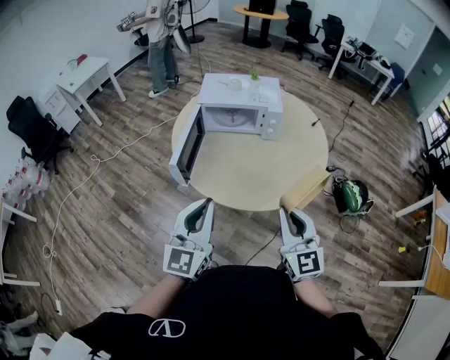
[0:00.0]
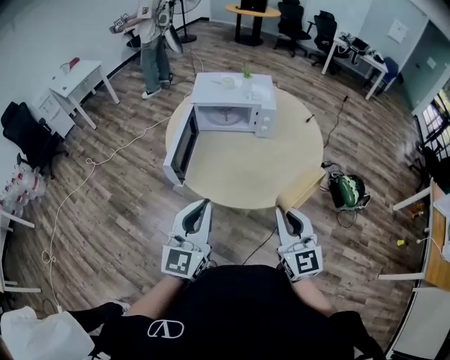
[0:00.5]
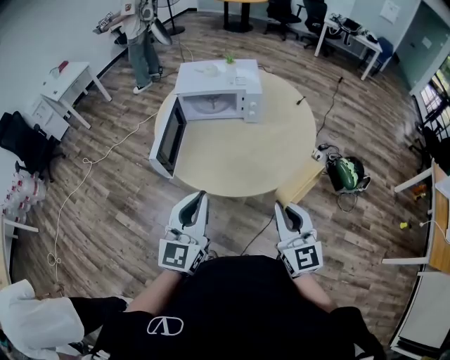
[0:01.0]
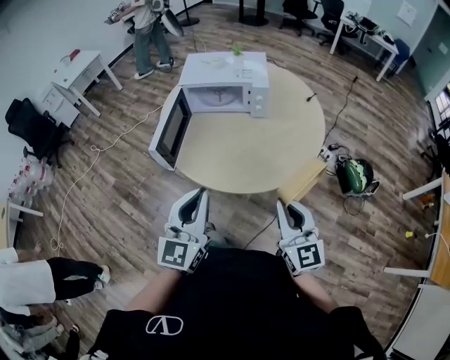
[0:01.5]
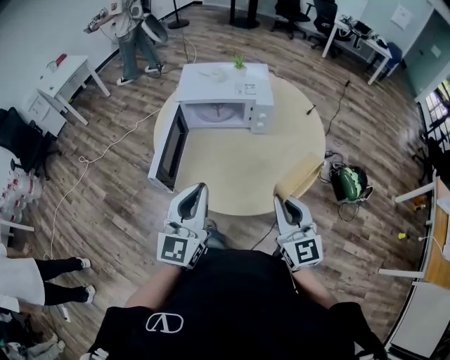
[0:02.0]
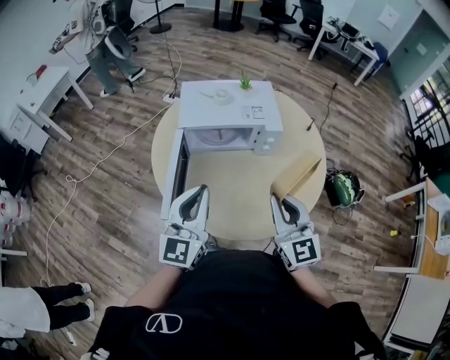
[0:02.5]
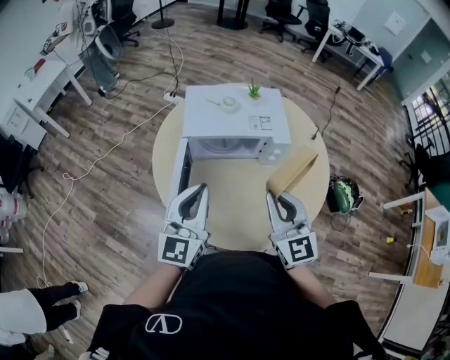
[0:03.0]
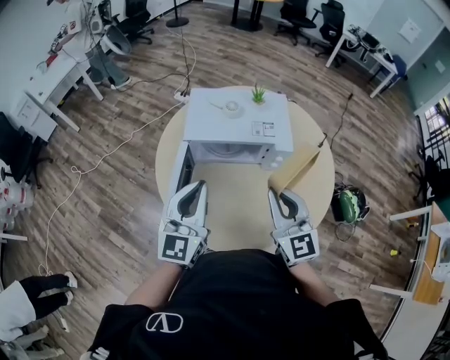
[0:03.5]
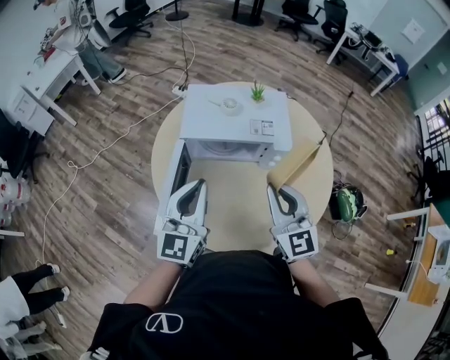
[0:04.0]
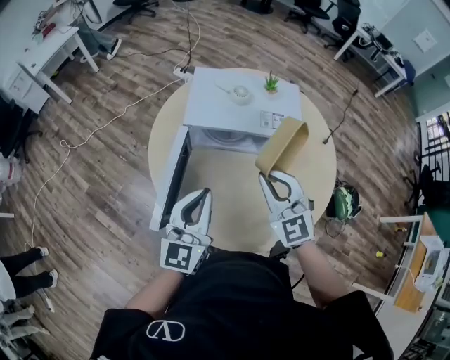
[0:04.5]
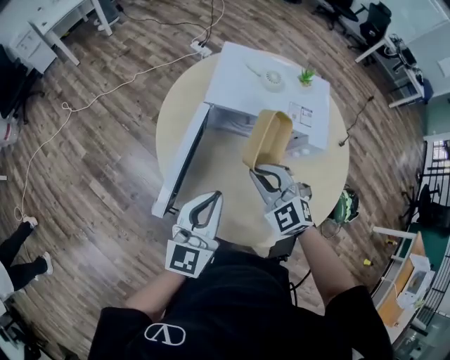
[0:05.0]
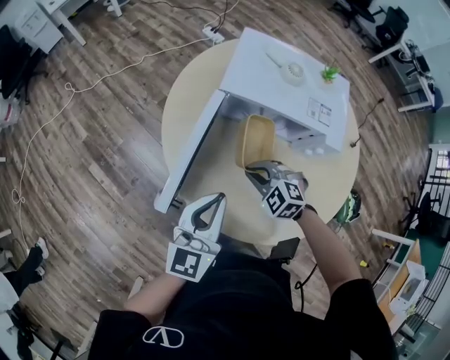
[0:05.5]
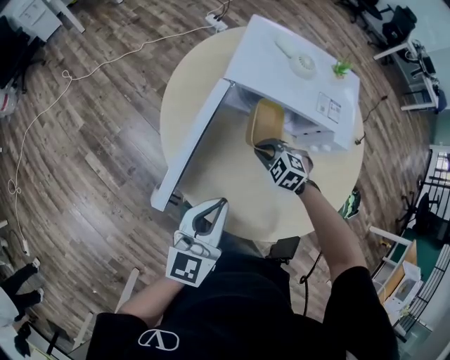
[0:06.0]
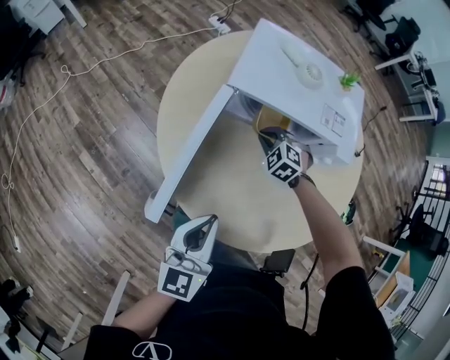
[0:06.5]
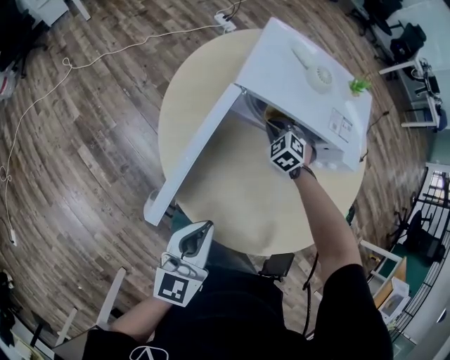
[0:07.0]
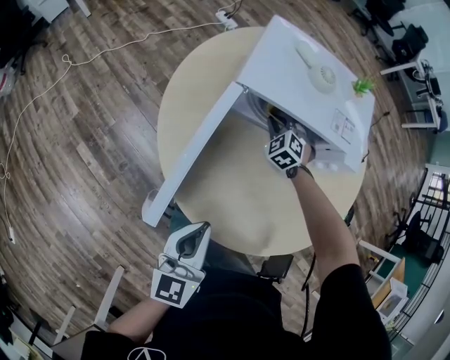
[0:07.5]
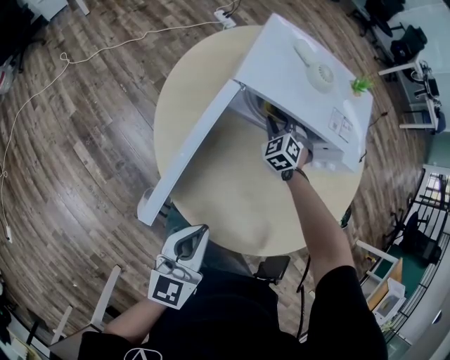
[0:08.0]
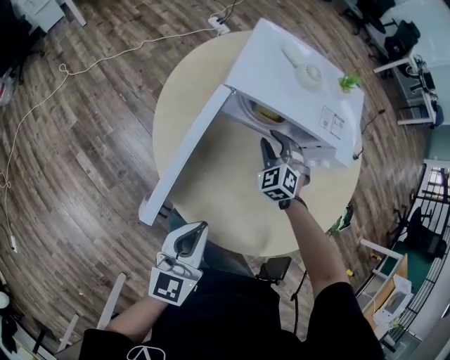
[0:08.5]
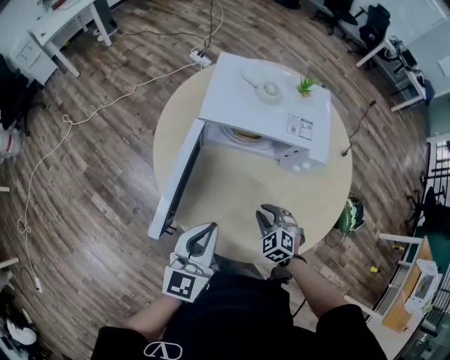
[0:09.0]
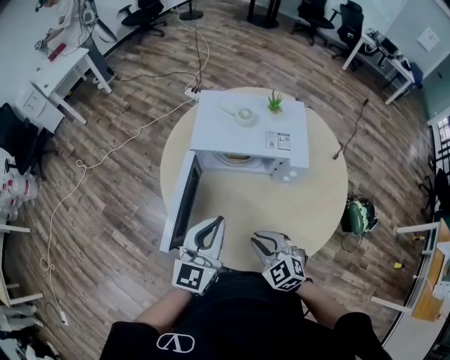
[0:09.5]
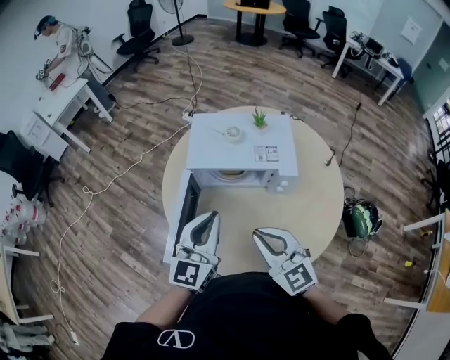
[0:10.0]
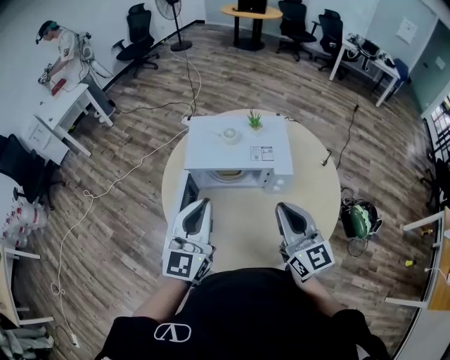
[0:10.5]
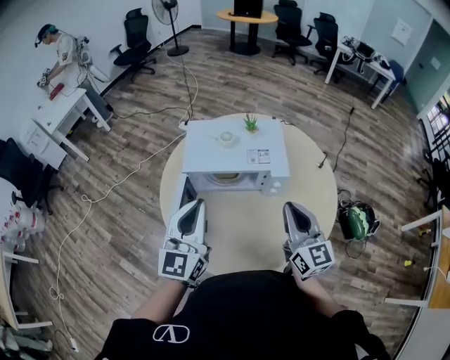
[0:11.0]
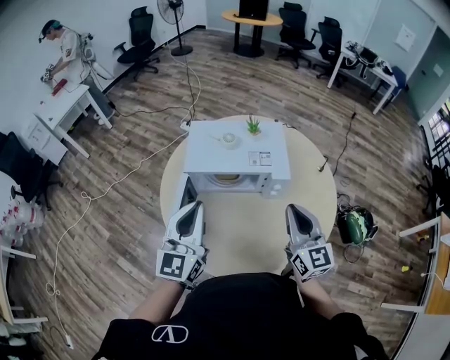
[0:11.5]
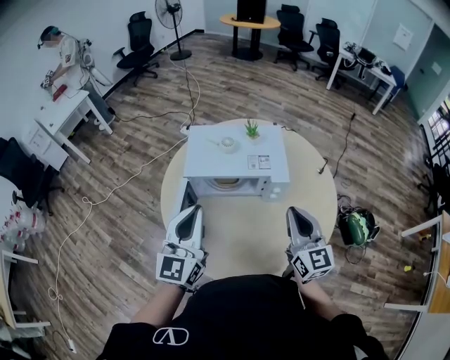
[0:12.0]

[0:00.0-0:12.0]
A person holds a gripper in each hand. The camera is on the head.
0.0 to 2.0 s: The grippers both shift forward by some 10 cm.
2.0 to 4.0 s: The two grippers go approximately 25 cm forward.
4.0 to 6.0 s: The right gripper goes roughly 35 cm downward, and tips its fingers downward by some 60 degrees. The left gripper goes approximately 15 cm downward, and changes its angle by about 20 degrees.
6.0 to 8.0 s: The right gripper shifts roughly 15 cm forward, turns by some 30 degrees, and opens up. The left gripper travels downward by about 5 cm.
8.0 to 10.0 s: The left gripper shifts some 25 cm upward and forward, and turns by some 30 degrees. The right gripper goes some 50 cm upward and backward, angles its fingers upward, by roughly 30 degrees, and closes up.
10.0 to 12.0 s: The right gripper moves to the right, about 15 cm, and changes its angle by roughly 30 degrees; the left gripper moves some 5 cm.

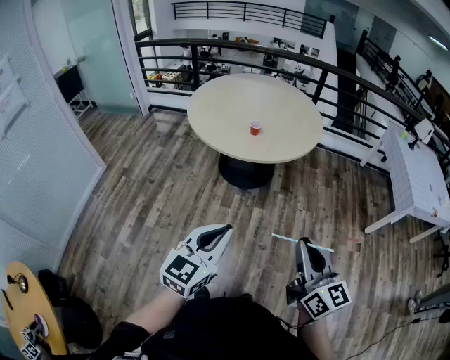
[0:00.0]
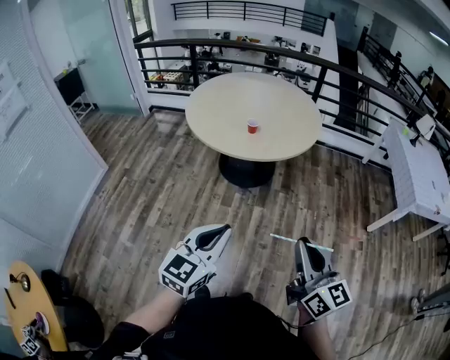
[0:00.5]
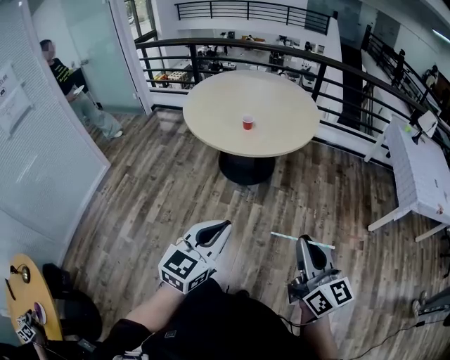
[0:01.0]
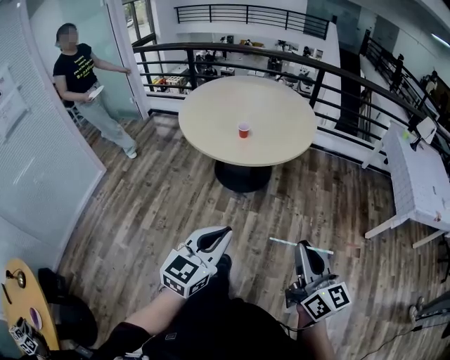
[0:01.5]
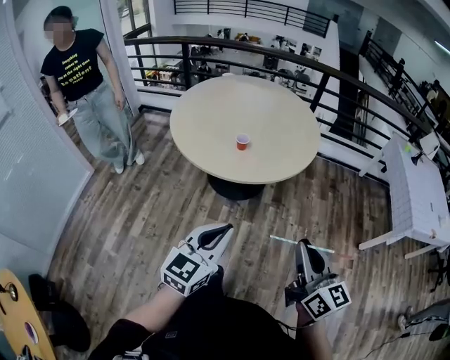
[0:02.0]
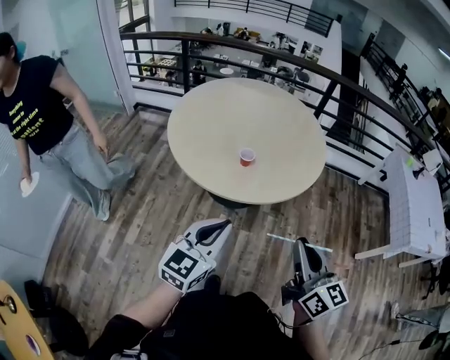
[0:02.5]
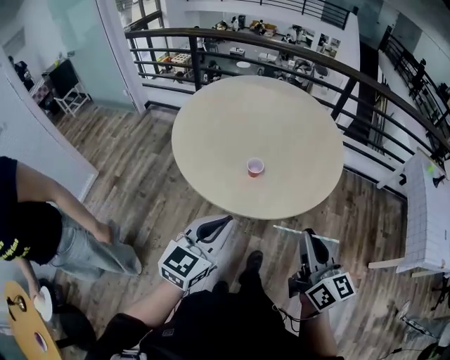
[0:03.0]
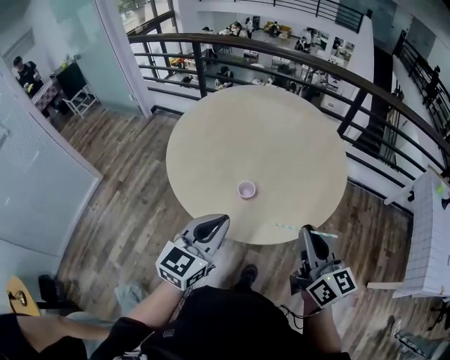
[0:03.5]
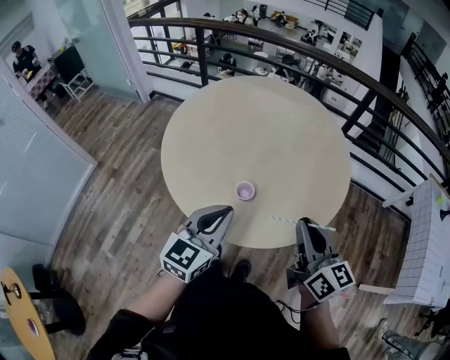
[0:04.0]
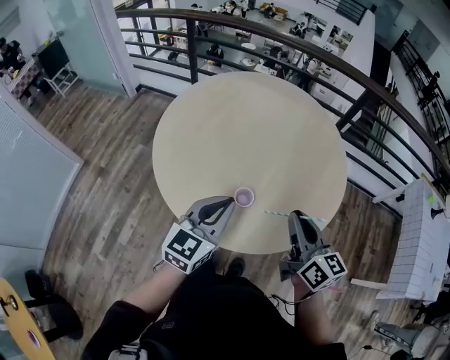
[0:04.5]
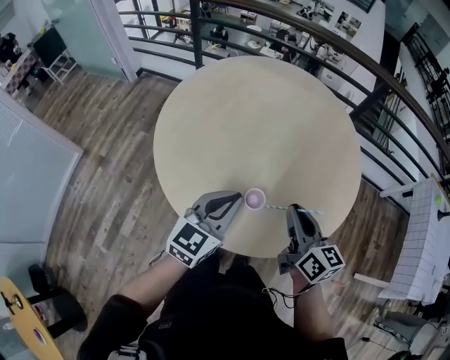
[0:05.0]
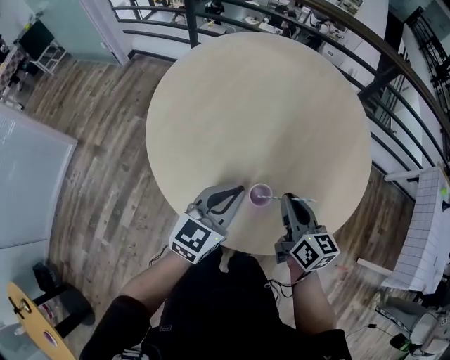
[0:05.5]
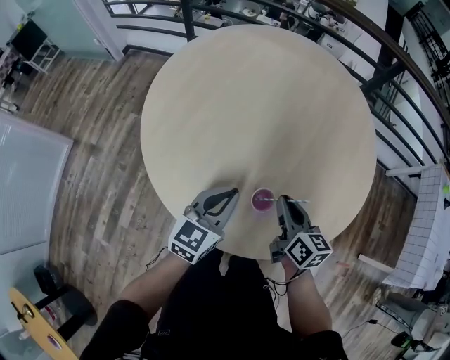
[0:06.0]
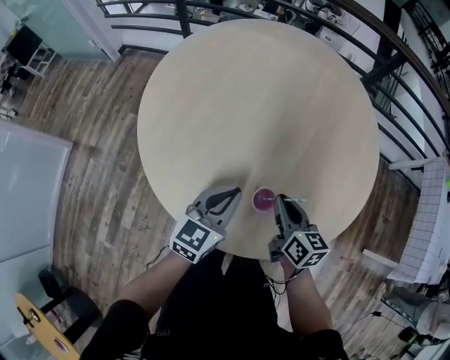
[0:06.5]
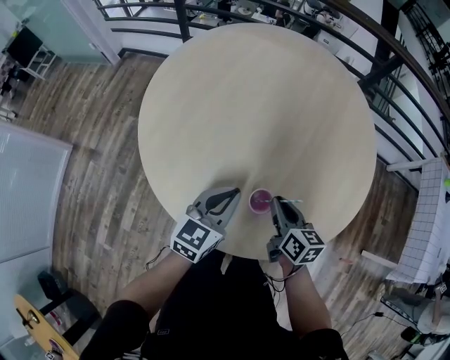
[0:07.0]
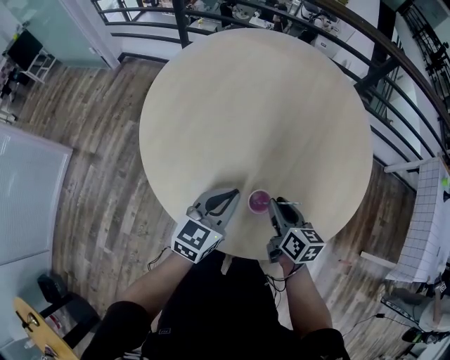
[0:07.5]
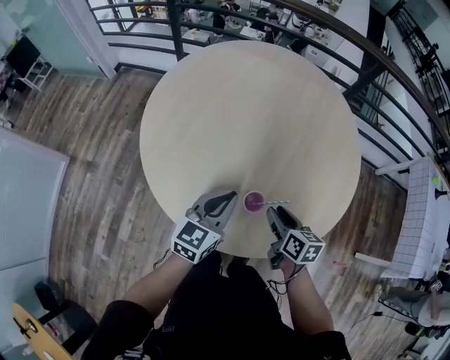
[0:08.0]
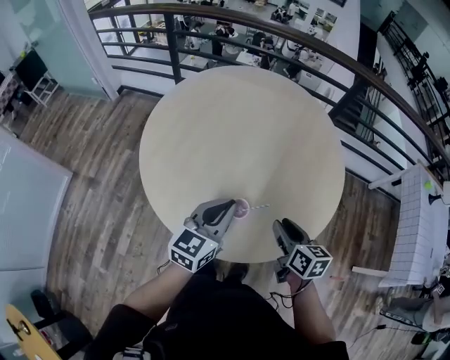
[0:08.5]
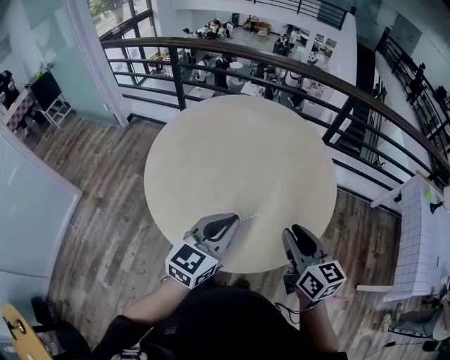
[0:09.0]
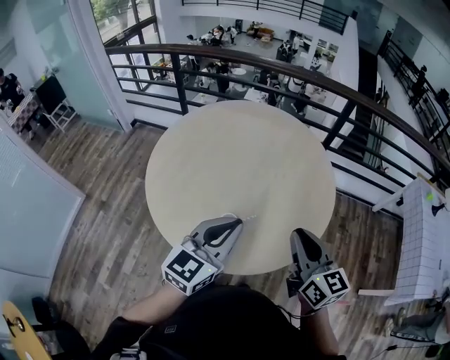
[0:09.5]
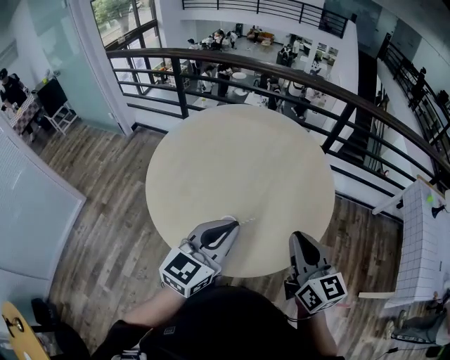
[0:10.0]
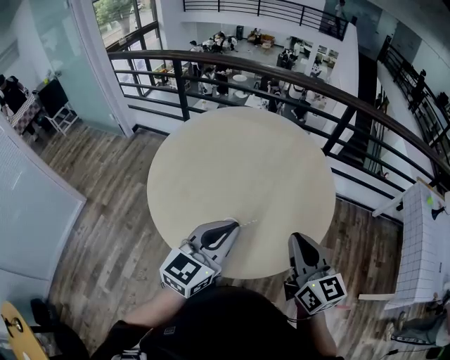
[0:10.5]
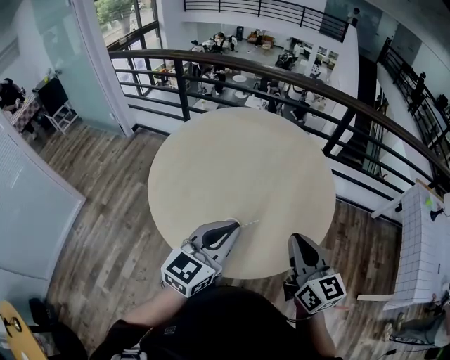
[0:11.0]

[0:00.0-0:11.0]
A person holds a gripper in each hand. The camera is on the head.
0.0 to 2.0 s: Both grippers travel together forward, approximately 20 cm.
2.0 to 3.5 s: Both grippers move forward, about 35 cm.
3.5 to 5.5 s: The right gripper shifts about 30 cm forward, downward and to the left; the left gripper moves forward and downward, roughly 25 cm.
5.5 to 7.5 s: The right gripper moves downward, some 10 cm, while the left gripper moves downward, some 5 cm.
7.5 to 9.0 s: The grippers both shift upward and to the right by roughly 25 cm. The right gripper rotates about 20 degrees.
9.0 to 11.0 s: The right gripper is displaced upward by about 5 cm, and closes its fingers.

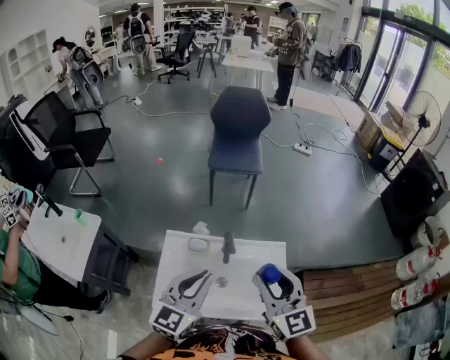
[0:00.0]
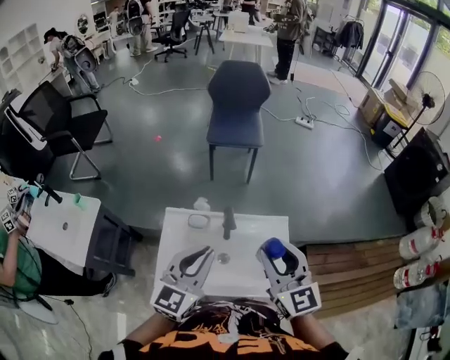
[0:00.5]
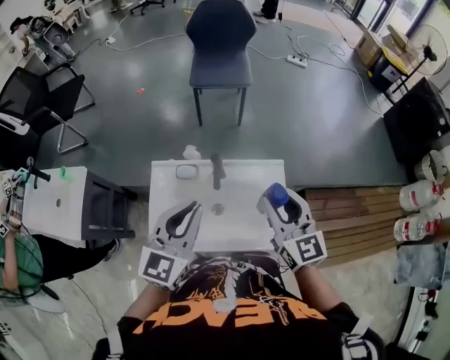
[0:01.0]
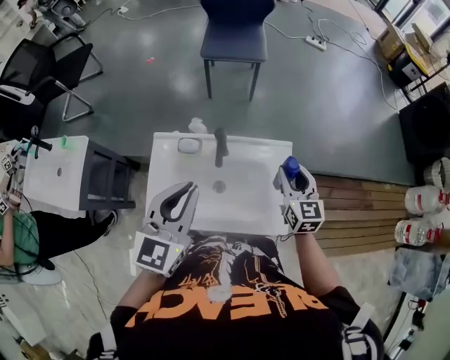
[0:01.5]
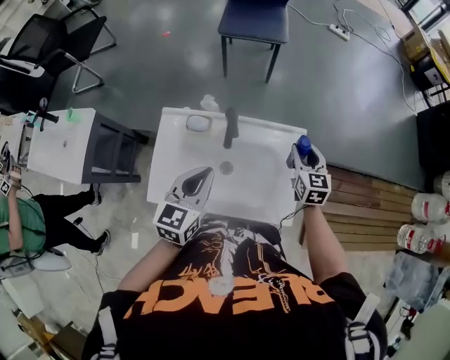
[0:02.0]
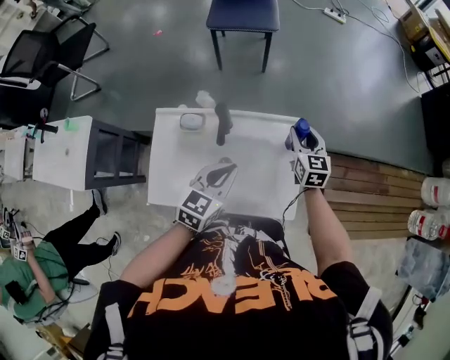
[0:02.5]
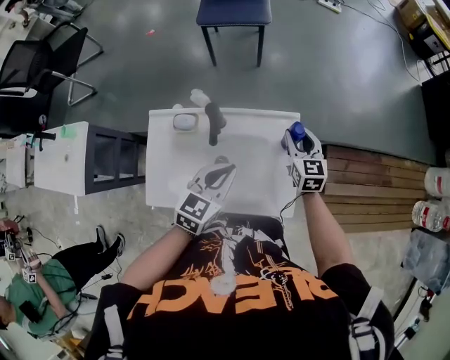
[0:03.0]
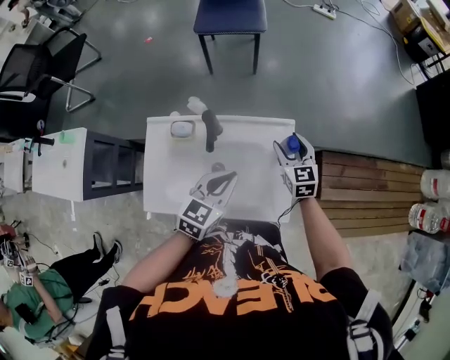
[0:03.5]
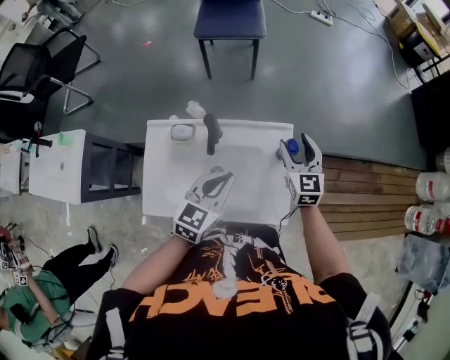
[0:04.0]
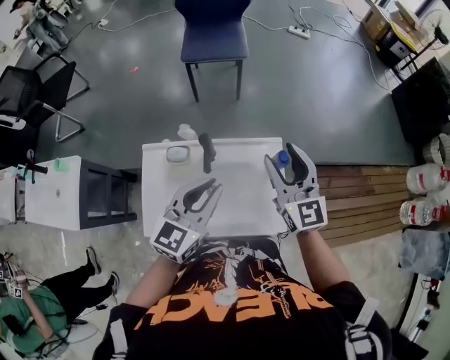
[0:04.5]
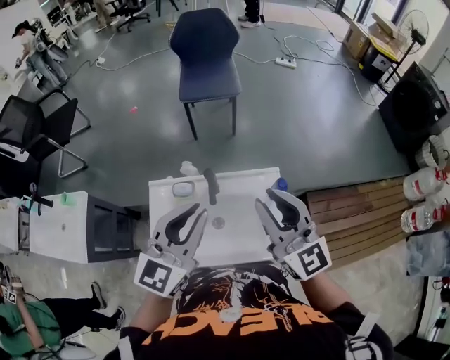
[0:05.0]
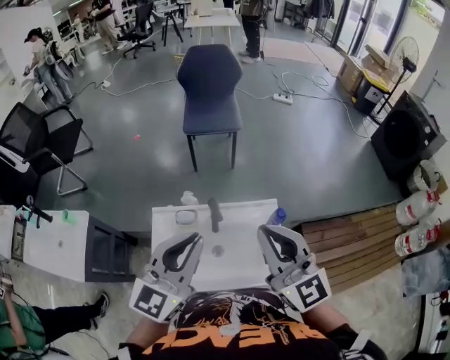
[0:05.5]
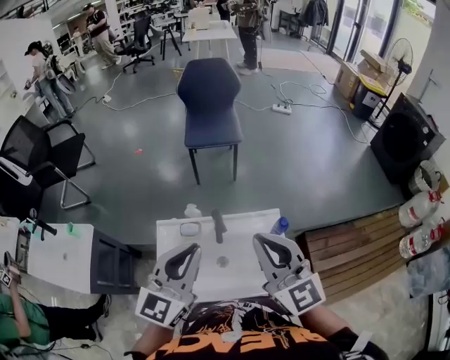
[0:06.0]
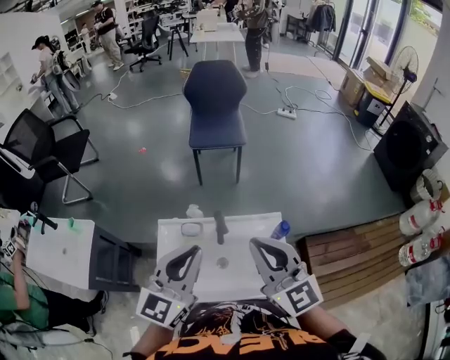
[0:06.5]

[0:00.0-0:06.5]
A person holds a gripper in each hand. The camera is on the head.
0.0 to 2.0 s: The right gripper heads downward, forward and to the right, covering about 35 cm, and changes its angle by some 30 degrees. Meanwhile the left gripper shifts some 15 cm downward and to the right, and changes its angle by roughly 20 degrees.
2.0 to 4.5 s: The right gripper goes some 20 cm upward, and rotates some 30 degrees; the left gripper travels upward and to the right by some 10 cm.
4.5 to 6.5 s: The right gripper heads upward, to the left and backward, covering roughly 20 cm, and closes; the left gripper goes roughly 15 cm upward and to the left.
